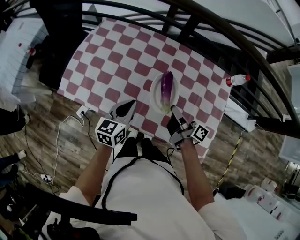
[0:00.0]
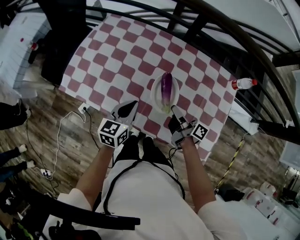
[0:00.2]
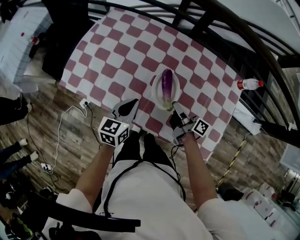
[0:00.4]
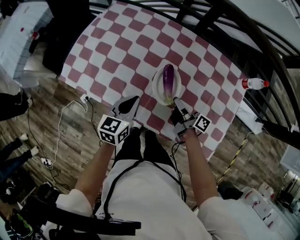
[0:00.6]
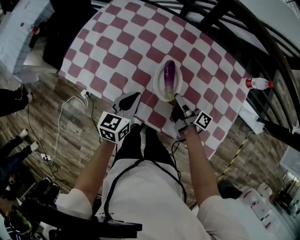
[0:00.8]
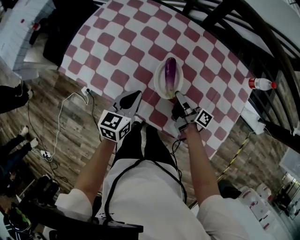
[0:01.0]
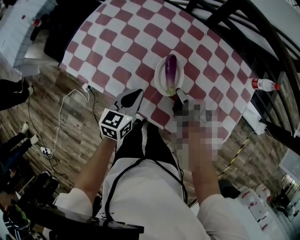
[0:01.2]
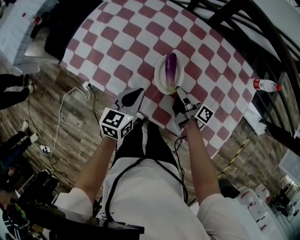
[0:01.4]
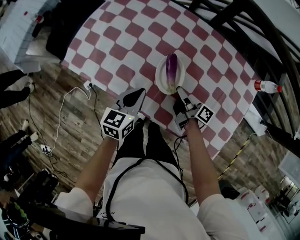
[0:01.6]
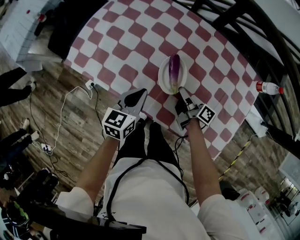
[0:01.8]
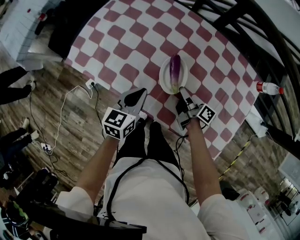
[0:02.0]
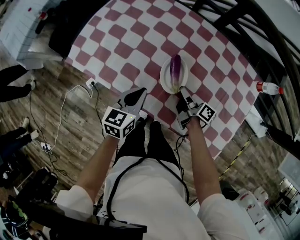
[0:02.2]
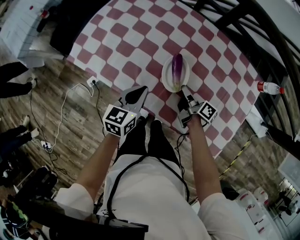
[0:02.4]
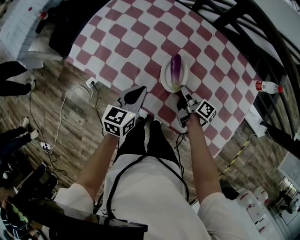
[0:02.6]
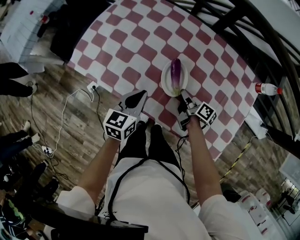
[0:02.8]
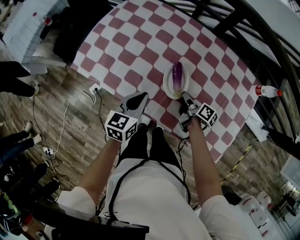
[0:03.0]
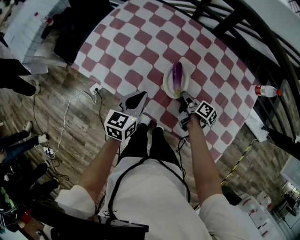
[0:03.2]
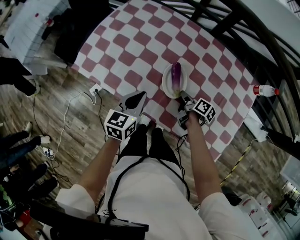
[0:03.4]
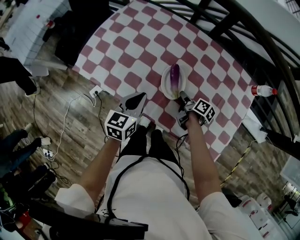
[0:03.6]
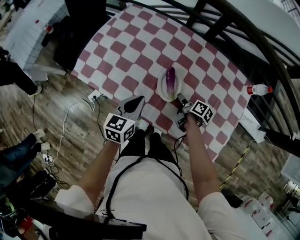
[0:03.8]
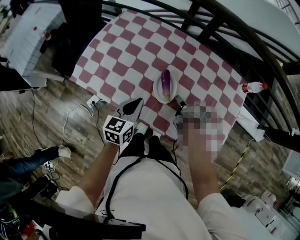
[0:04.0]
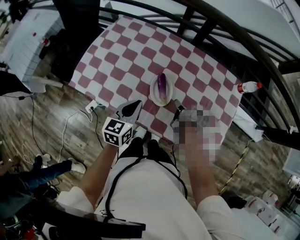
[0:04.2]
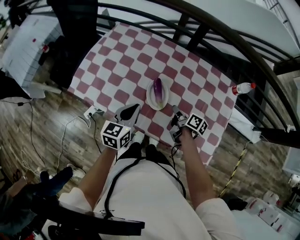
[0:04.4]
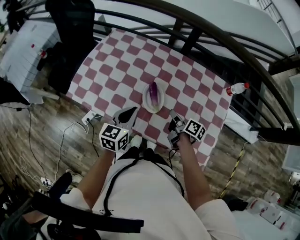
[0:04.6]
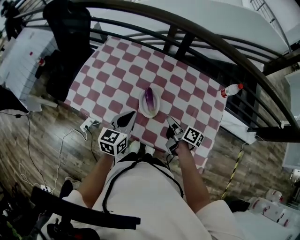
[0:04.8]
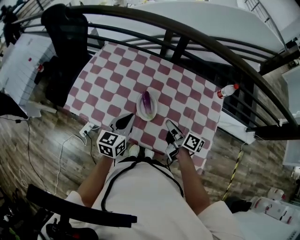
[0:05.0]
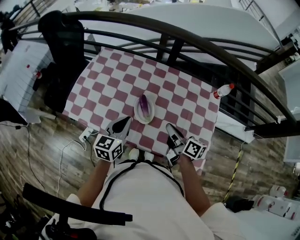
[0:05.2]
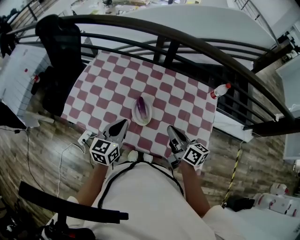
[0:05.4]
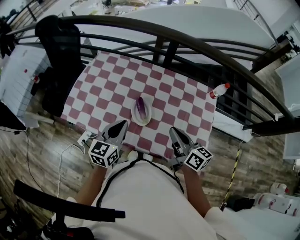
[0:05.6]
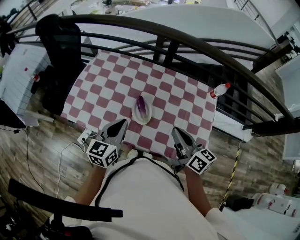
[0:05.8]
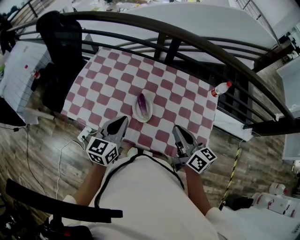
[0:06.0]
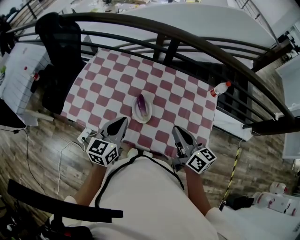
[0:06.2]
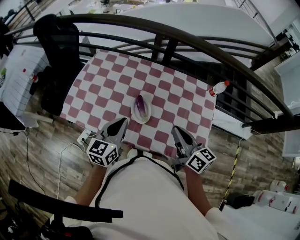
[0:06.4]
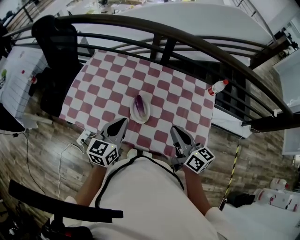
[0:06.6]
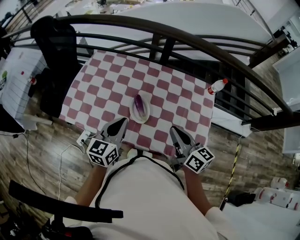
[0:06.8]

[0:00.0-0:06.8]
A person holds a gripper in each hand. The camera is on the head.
0:00.0 to 0:01.4: The left gripper moves downward, approximately 10 cm.
0:02.8 to 0:04.0: The left gripper ends up about 5 cm from where it was.
0:04.0 to 0:05.4: The left gripper travels upward by about 10 cm.

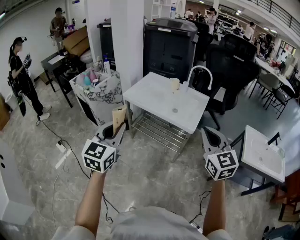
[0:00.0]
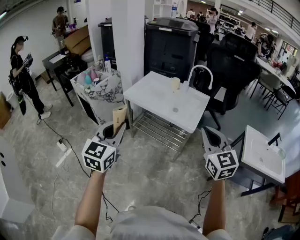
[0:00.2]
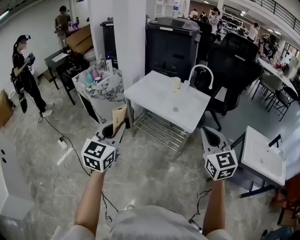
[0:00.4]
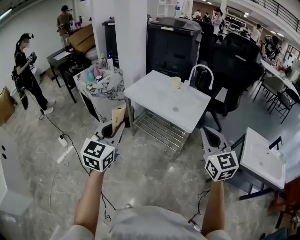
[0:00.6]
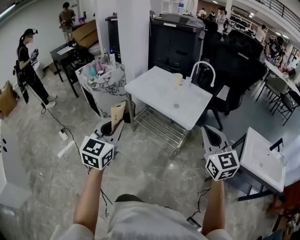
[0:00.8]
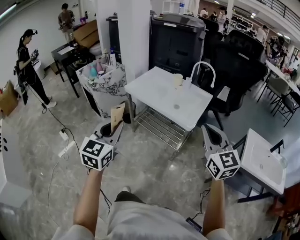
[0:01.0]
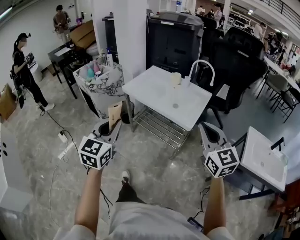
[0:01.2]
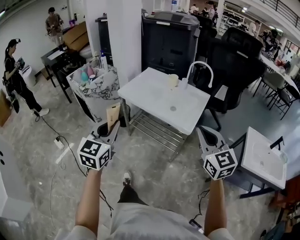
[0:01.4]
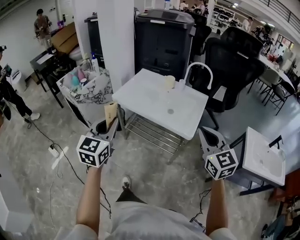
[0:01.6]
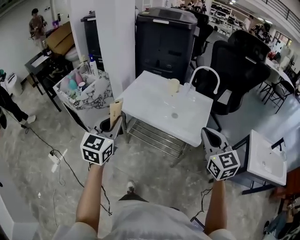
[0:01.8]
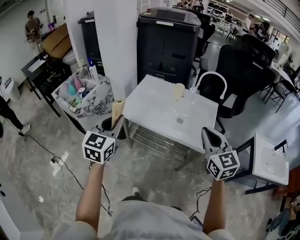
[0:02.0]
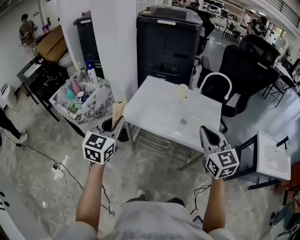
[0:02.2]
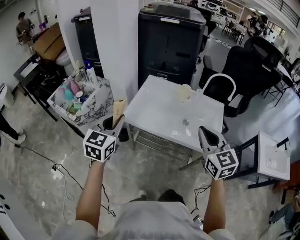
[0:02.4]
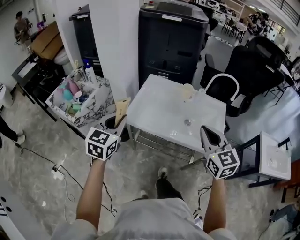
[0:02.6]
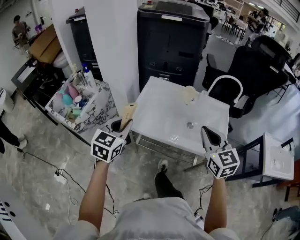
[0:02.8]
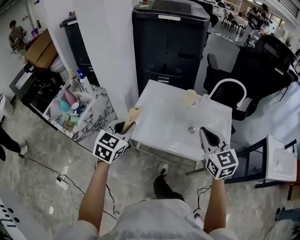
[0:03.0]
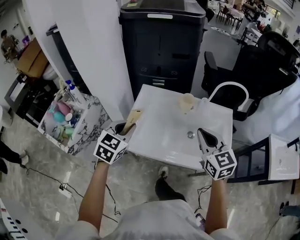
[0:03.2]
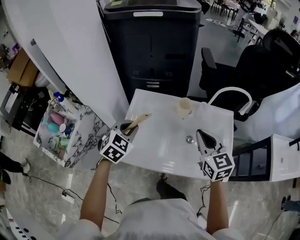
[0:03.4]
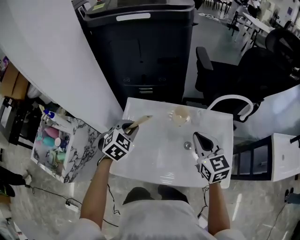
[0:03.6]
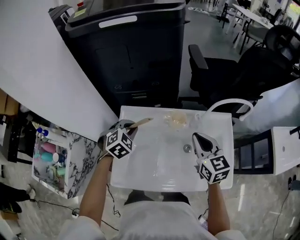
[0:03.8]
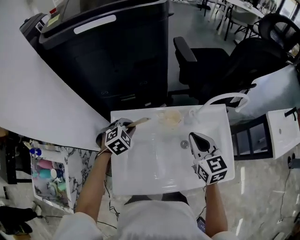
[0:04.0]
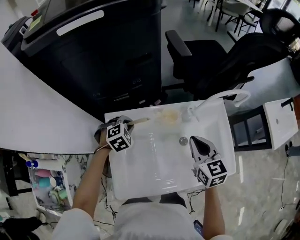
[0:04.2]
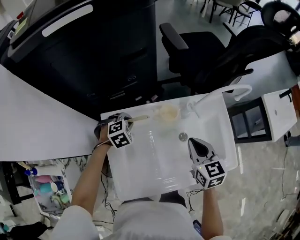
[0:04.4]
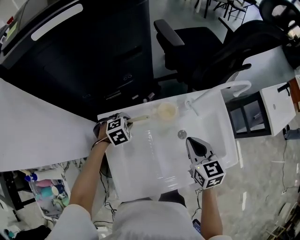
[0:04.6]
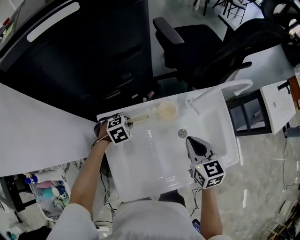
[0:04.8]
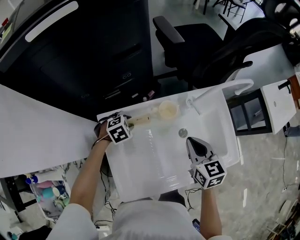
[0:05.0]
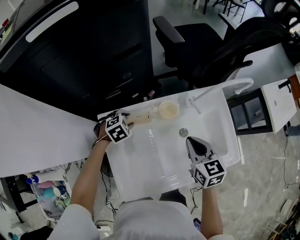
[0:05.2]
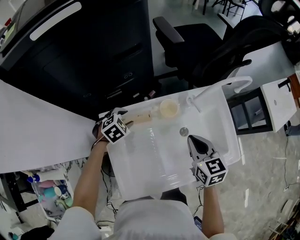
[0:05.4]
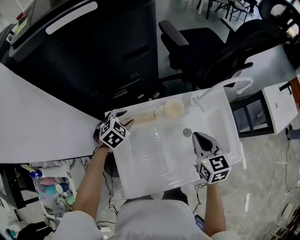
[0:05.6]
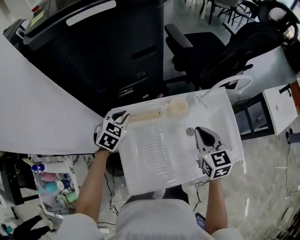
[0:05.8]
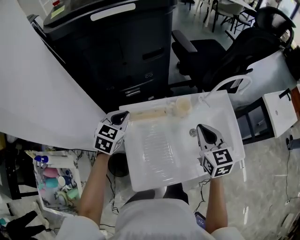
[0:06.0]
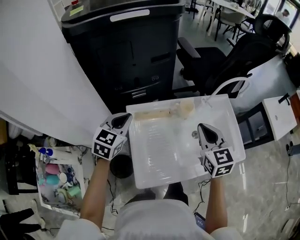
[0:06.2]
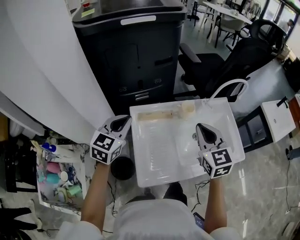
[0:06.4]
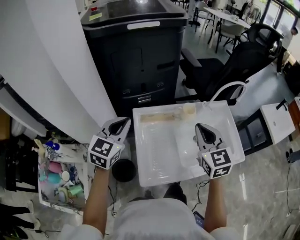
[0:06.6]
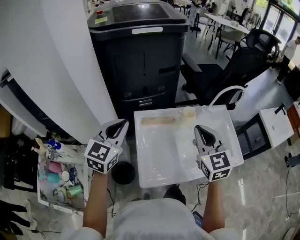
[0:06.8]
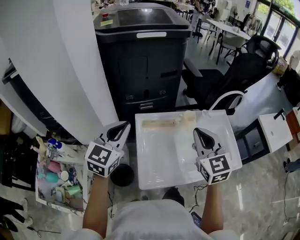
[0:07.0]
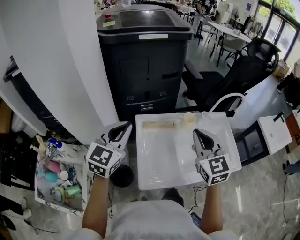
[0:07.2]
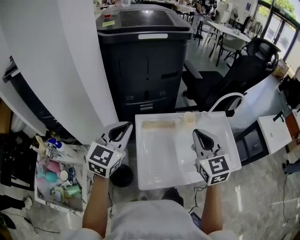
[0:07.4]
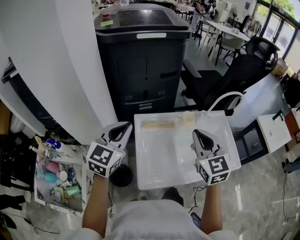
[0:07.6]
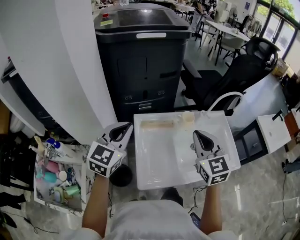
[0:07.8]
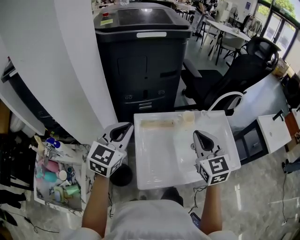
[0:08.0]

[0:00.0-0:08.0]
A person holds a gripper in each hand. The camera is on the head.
0:00.0 to 0:01.6: The two grippers go roughly 15 cm forward.
0:01.6 to 0:03.2: The two grippers travel together, forward, roughly 40 cm. The left gripper rotates about 30 degrees.
0:03.2 to 0:04.8: The right gripper shifts by some 20 cm, and rotates some 40 degrees. The left gripper moves roughly 40 cm, and tips its fingers downward by about 40 degrees.
0:04.8 to 0:06.4: The left gripper travels upward, backward and to the left by approximately 30 cm, angles its fingers upward, by about 50 degrees, and opens, then closes again. The right gripper is displaced upward, backward and to the left by roughly 15 cm, and changes its angle by approximately 20 degrees.
0:06.4 to 0:08.0: The left gripper heads upward and backward, covering about 10 cm; the right gripper ends up roughly 5 cm from where it was.

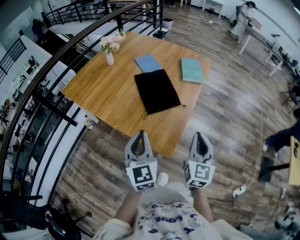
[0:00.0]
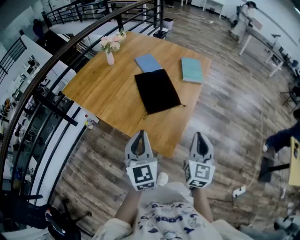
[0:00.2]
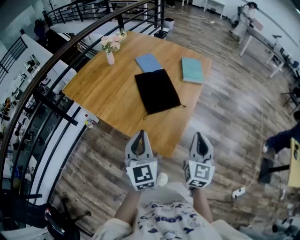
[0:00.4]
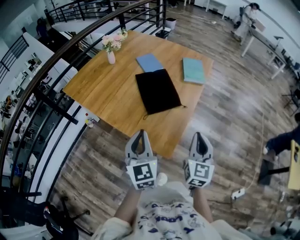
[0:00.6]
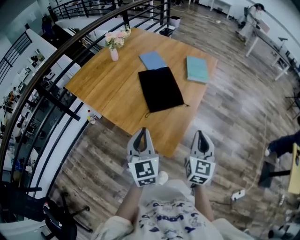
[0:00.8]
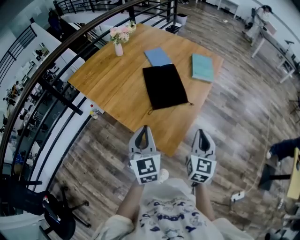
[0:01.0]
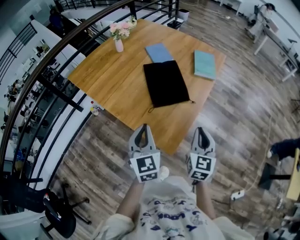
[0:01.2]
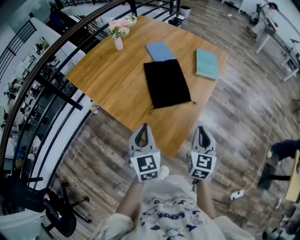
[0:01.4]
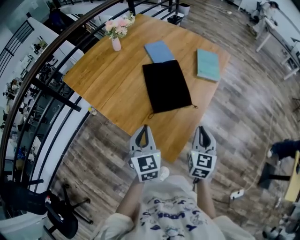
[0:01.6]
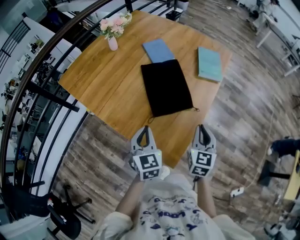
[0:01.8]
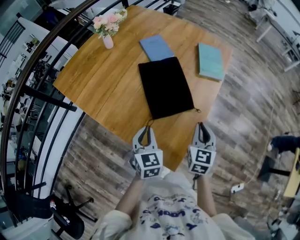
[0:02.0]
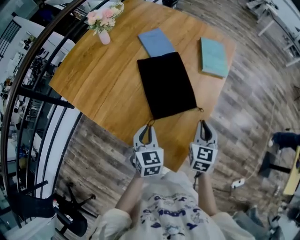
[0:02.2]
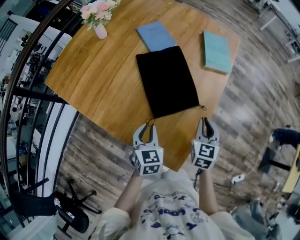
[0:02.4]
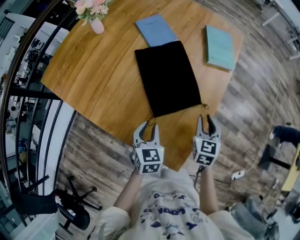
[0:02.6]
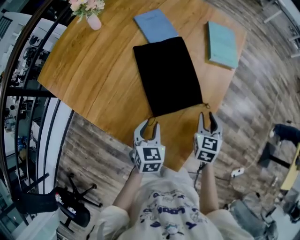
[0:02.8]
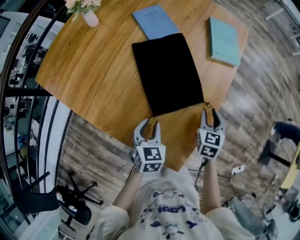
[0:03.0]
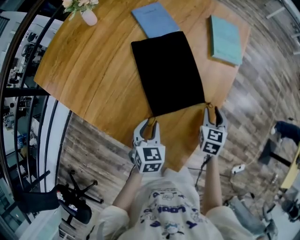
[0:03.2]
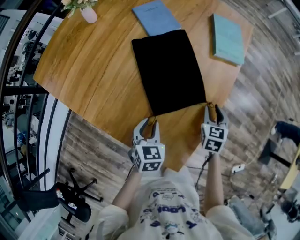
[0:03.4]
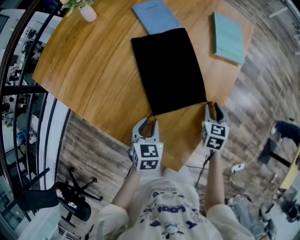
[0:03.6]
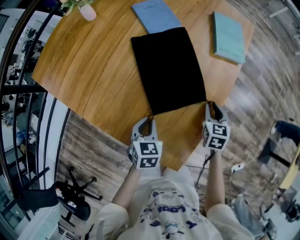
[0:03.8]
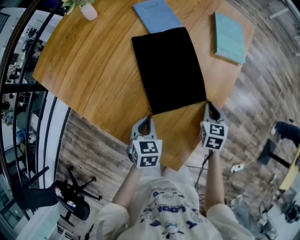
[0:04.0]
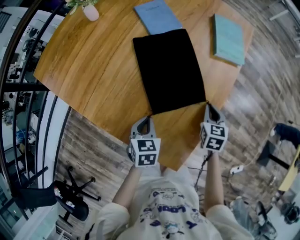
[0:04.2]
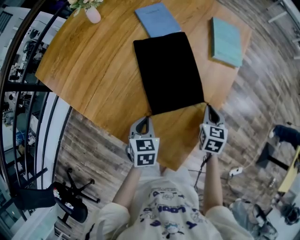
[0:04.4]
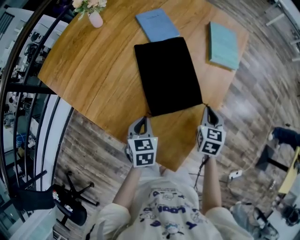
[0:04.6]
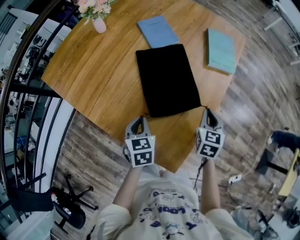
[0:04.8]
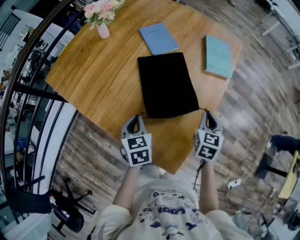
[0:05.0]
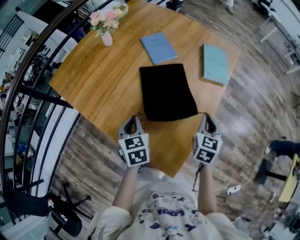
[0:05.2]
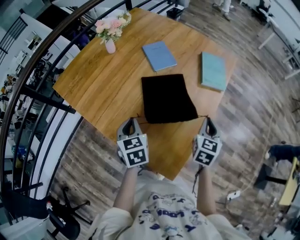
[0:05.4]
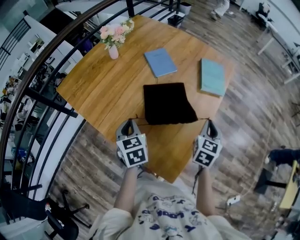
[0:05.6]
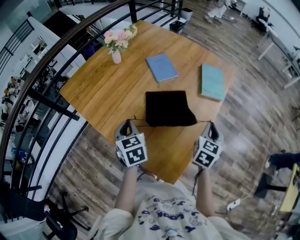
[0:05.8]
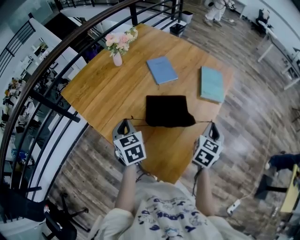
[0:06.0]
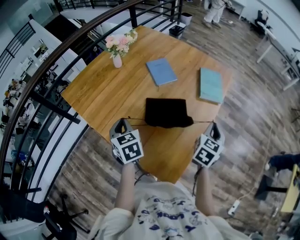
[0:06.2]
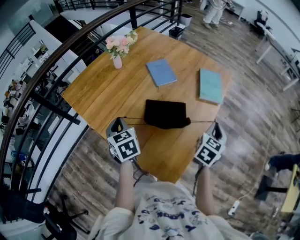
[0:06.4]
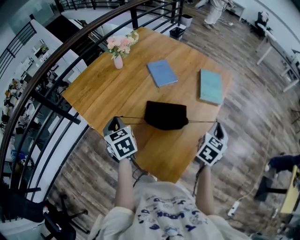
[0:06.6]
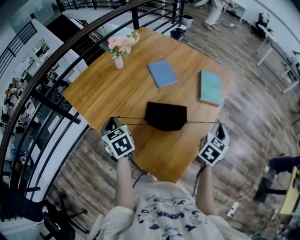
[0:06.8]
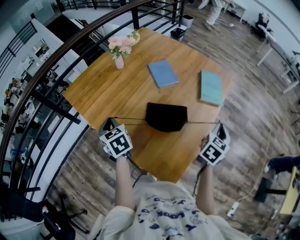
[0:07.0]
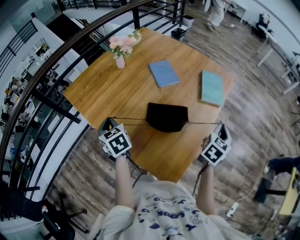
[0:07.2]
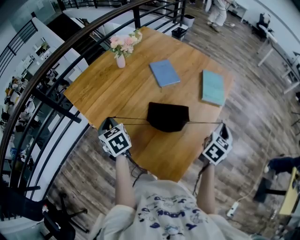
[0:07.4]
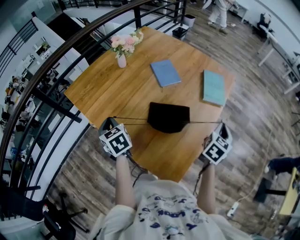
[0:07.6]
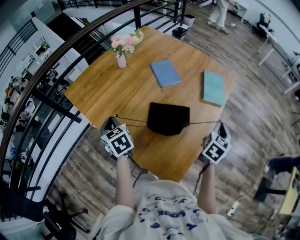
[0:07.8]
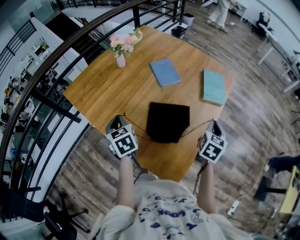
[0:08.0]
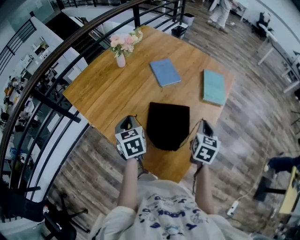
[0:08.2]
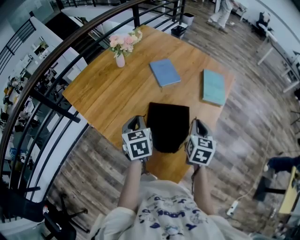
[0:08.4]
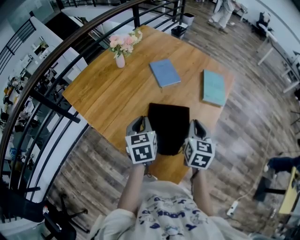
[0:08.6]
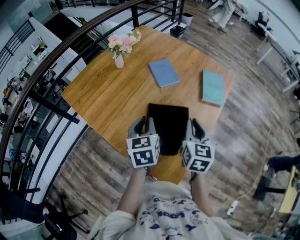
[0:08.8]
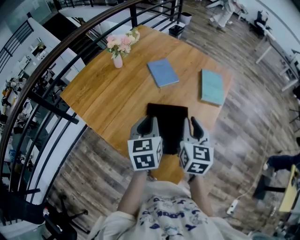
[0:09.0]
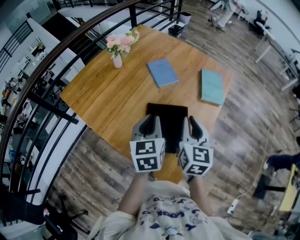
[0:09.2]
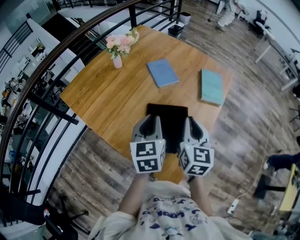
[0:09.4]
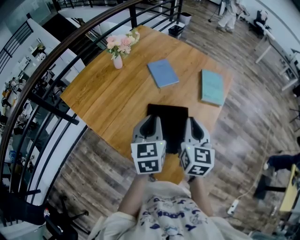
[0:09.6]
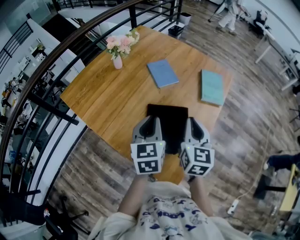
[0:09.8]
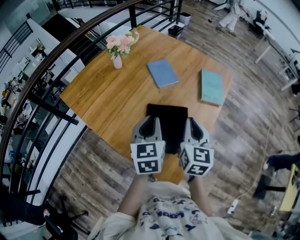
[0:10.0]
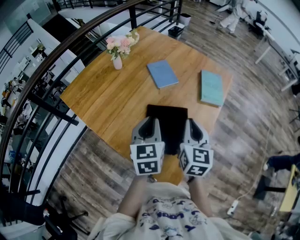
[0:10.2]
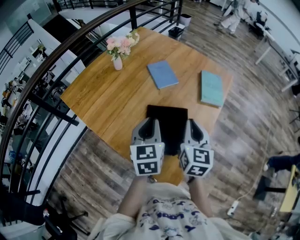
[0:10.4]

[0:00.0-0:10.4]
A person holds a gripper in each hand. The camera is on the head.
0:00.0 to 0:01.4: The left gripper goes roughly 5 cm downward. The right gripper is displaced downward and forward by roughly 10 cm.
0:01.4 to 0:03.0: Both grippers travel together downward and forward, approximately 20 cm. The left gripper swivels some 30 degrees, and opens its fingers; the right gripper rotates some 30 degrees, and opens its fingers.
0:03.0 to 0:04.4: The left gripper closes its fingers; the right gripper closes up.
0:04.4 to 0:06.0: The left gripper heads upward and to the left, covering roughly 20 cm, and swivels some 30 degrees, while the right gripper moves upward, approximately 15 cm, and swivels some 20 degrees.
0:06.0 to 0:07.4: The left gripper heads to the left, covering some 10 cm, while the right gripper ends up approximately 5 cm from where it was.
0:07.4 to 0:09.0: The right gripper goes roughly 20 cm to the left, and changes its angle by some 30 degrees. Meanwhile the left gripper travels to the right by roughly 20 cm, and turns by approximately 40 degrees.
0:09.0 to 0:10.4: The grippers make only small movements.
